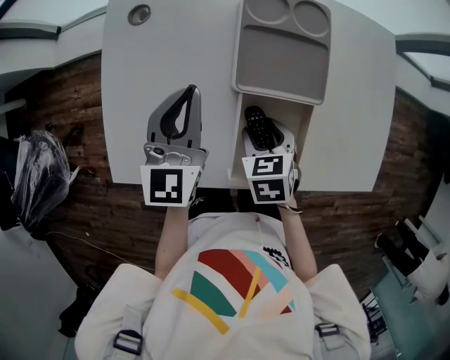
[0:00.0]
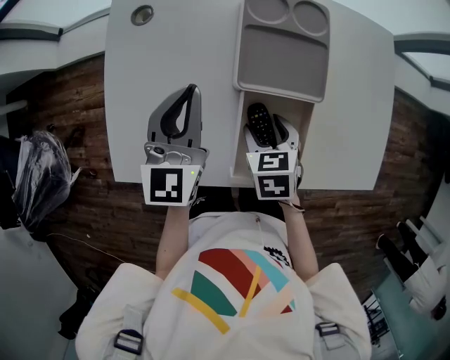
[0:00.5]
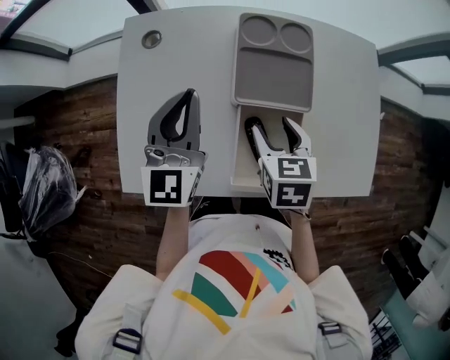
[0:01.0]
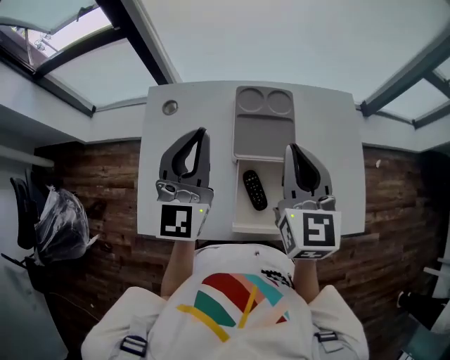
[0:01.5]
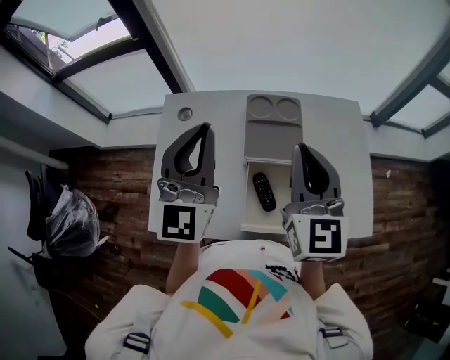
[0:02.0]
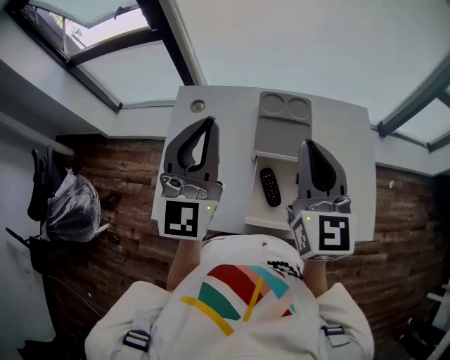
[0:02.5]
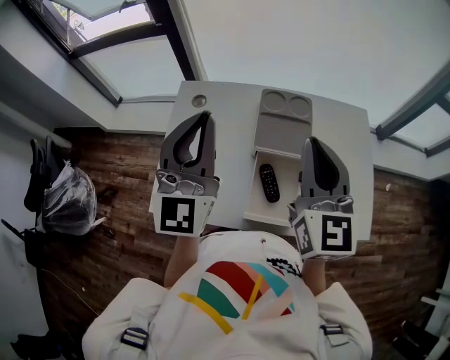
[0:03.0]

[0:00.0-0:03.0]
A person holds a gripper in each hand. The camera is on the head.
0:00.0 to 0:01.5: The right gripper is displaced upward by approximately 30 cm, points its fingers about 50 degrees further upward, and closes up. Meanwhile the left gripper travels upward by some 20 cm, and turns by some 20 degrees.
0:01.5 to 0:03.0: The left gripper goes roughly 10 cm upward and backward. Meanwhile the right gripper shifts approximately 5 cm upward.

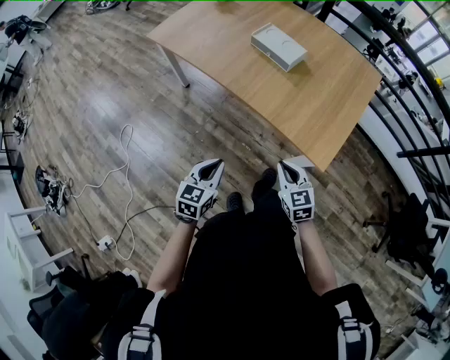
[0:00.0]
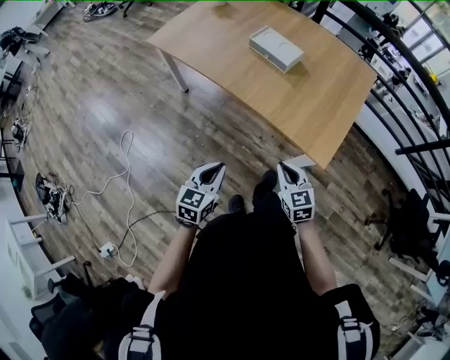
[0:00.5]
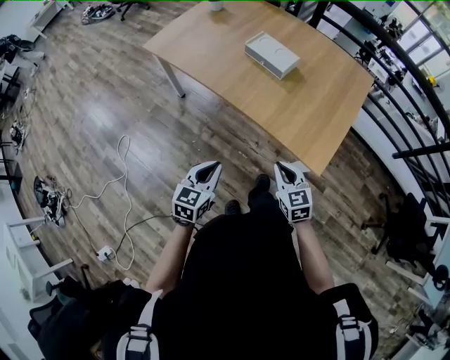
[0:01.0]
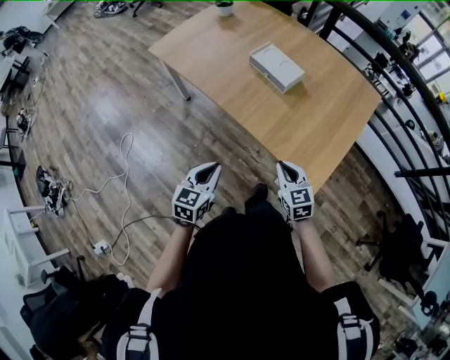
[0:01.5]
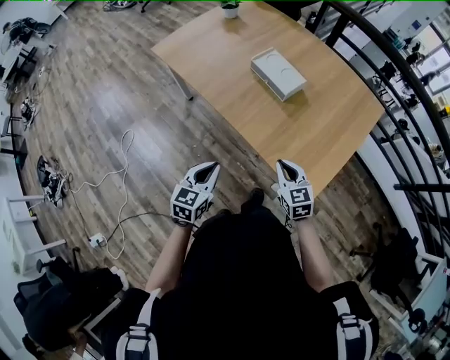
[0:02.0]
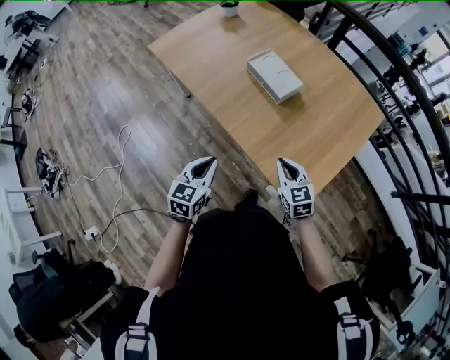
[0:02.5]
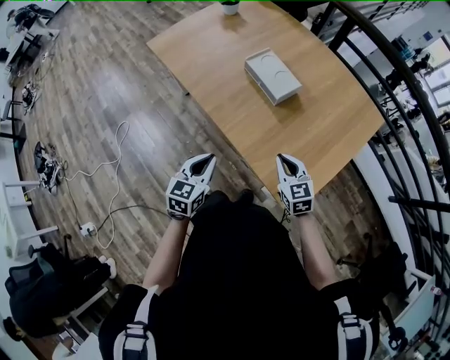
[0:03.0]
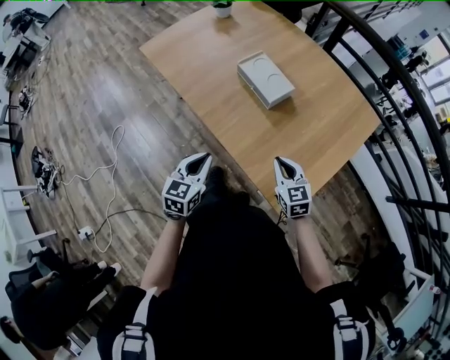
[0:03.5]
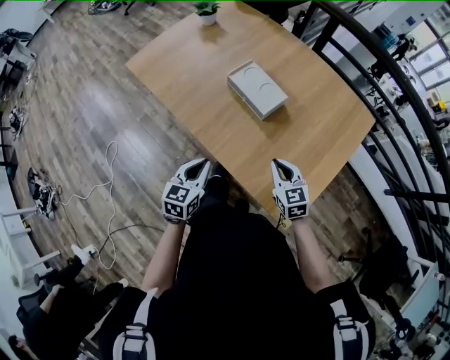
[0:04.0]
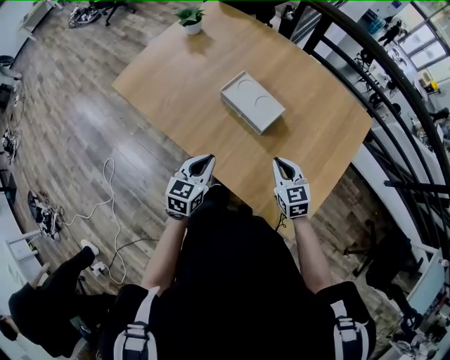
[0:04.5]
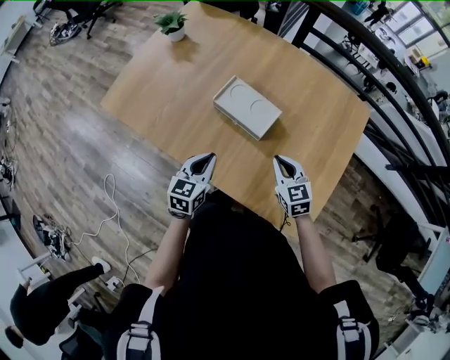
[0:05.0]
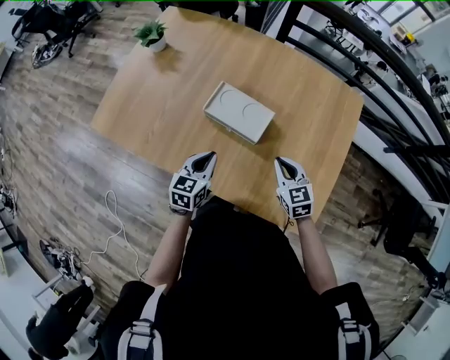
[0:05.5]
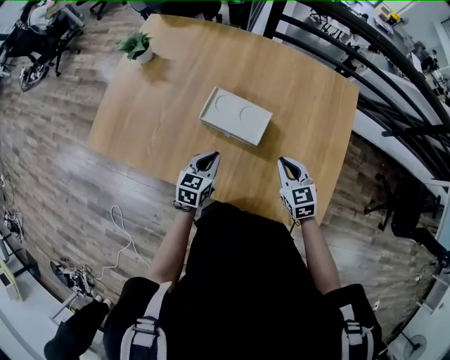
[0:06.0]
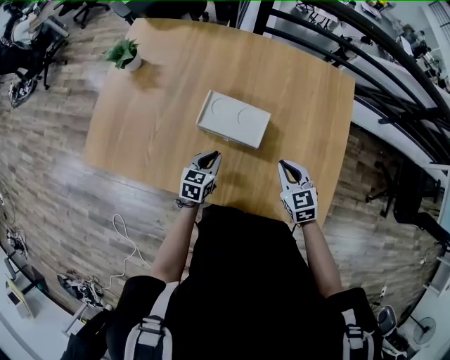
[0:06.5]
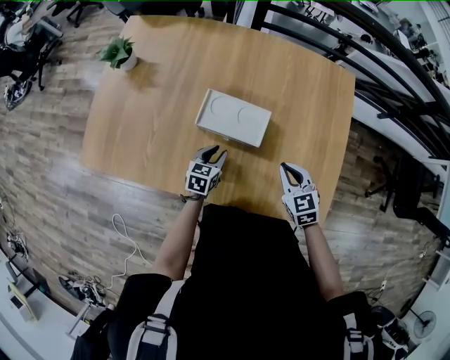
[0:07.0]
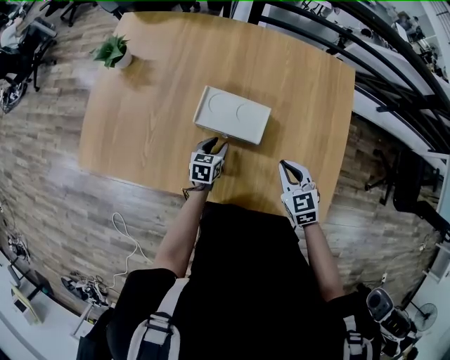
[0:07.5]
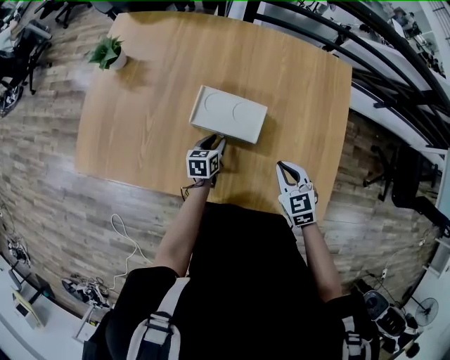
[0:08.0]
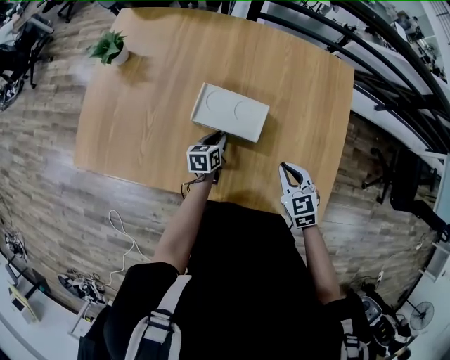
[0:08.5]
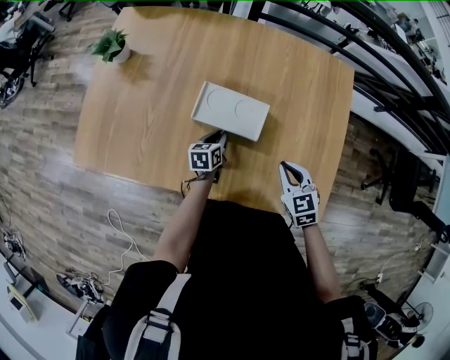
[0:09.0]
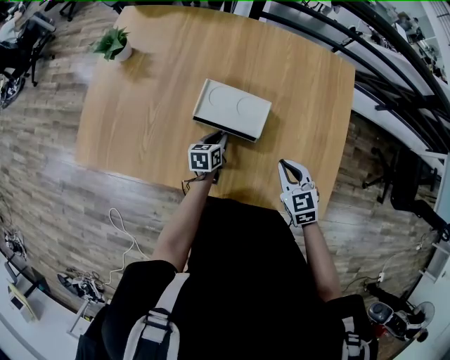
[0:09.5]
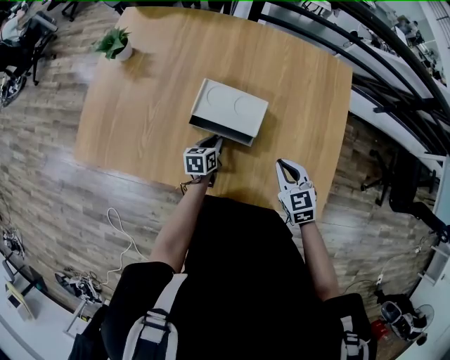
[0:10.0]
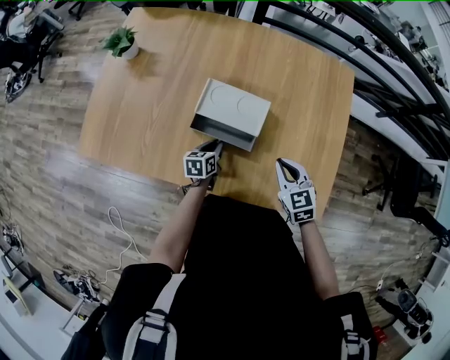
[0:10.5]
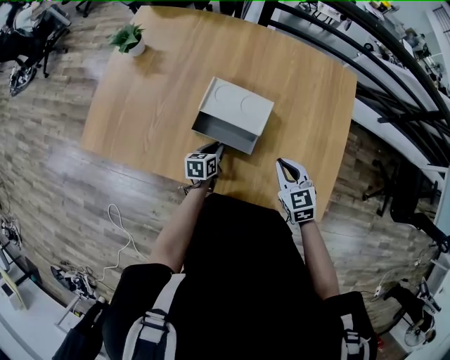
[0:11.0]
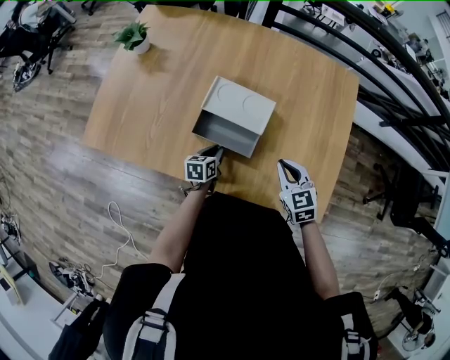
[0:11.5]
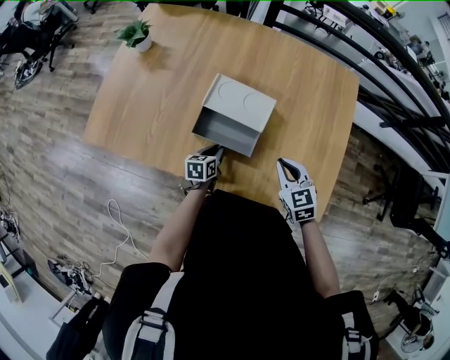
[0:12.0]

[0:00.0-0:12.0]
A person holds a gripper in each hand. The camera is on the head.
0:00.0 to 0:02.0: Both grippers move forward, approximately 10 cm.
0:02.0 to 0:04.0: The left gripper is displaced forward by some 15 cm; the right gripper moves forward and to the right, approximately 15 cm.
0:04.0 to 0:06.0: The left gripper shifts by about 25 cm, and changes its angle by about 30 degrees. Meanwhile the right gripper shifts by roughly 15 cm, and turns by some 20 degrees.
0:06.0 to 0:08.0: The left gripper shifts approximately 15 cm downward and forward, and opens.
0:08.0 to 0:10.0: The grippers make only small movements.
0:10.0 to 0:12.0: The left gripper travels backward by some 5 cm.

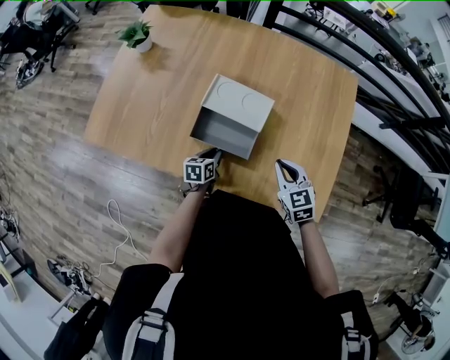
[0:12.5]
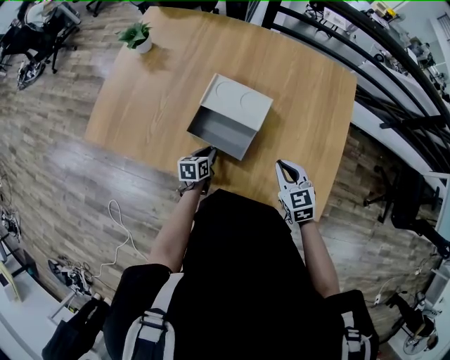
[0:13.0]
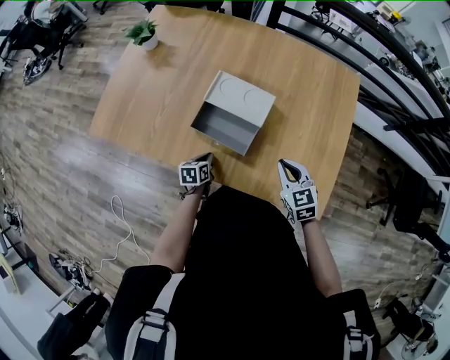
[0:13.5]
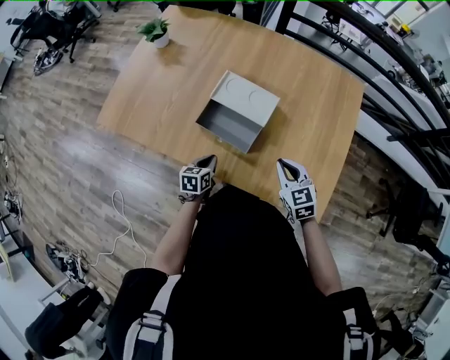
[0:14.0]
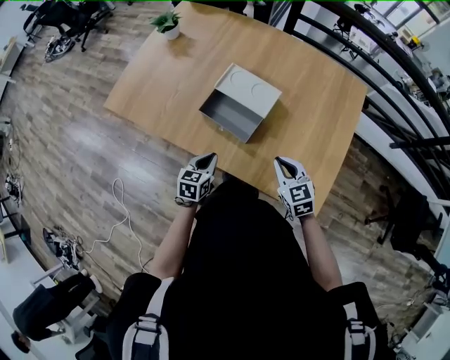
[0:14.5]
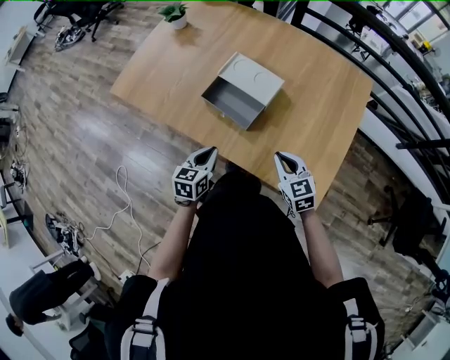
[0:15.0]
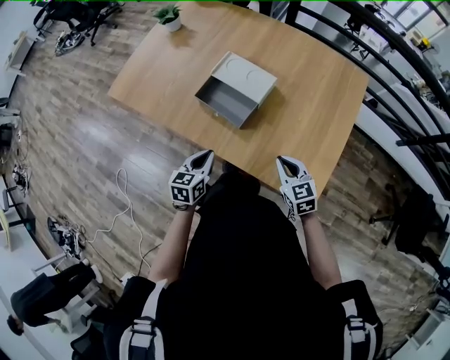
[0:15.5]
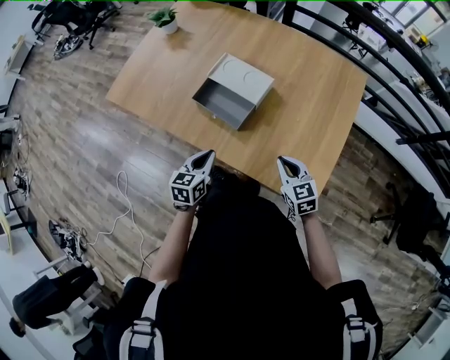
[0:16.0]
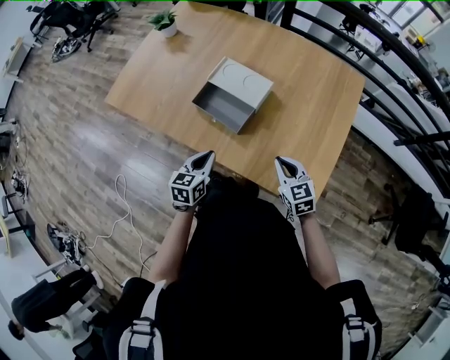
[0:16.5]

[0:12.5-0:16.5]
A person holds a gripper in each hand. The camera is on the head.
0:12.5 to 0:14.5: The right gripper goes about 5 cm backward, while the left gripper goes roughly 15 cm upward and backward.
0:14.5 to 0:16.5: The right gripper moves some 5 cm, while the left gripper shifts by approximately 5 cm.

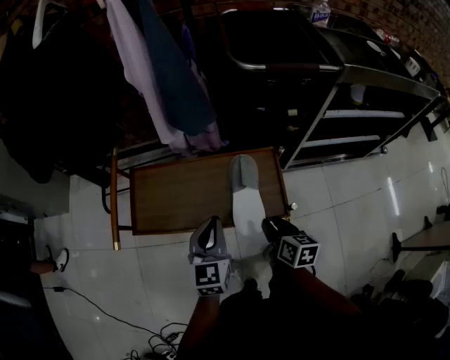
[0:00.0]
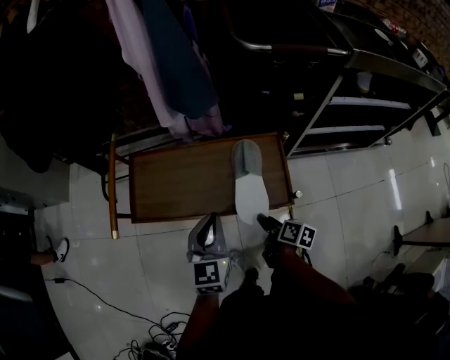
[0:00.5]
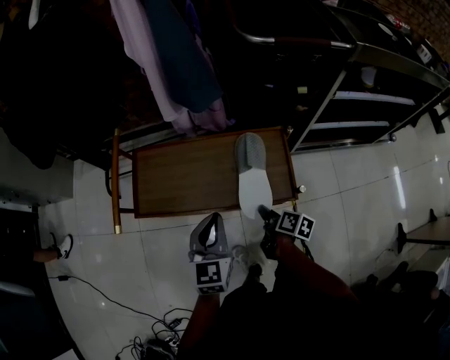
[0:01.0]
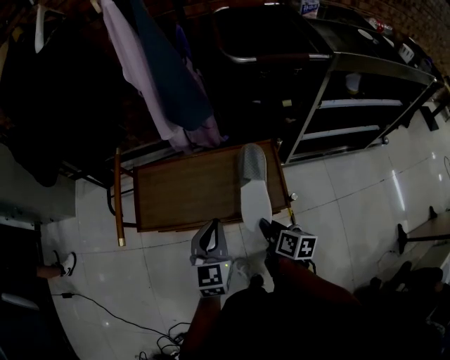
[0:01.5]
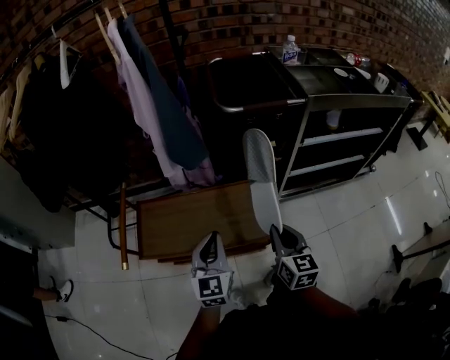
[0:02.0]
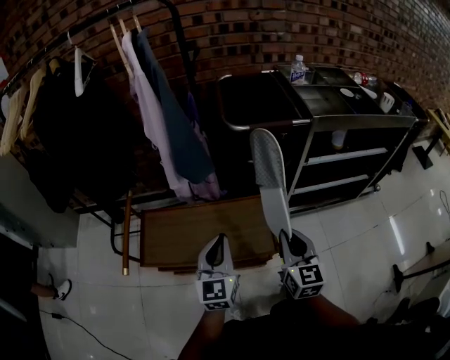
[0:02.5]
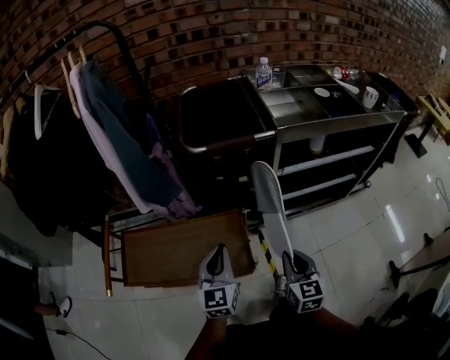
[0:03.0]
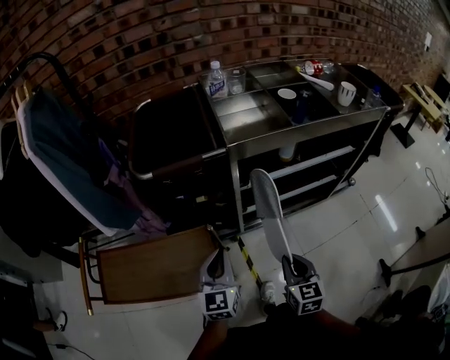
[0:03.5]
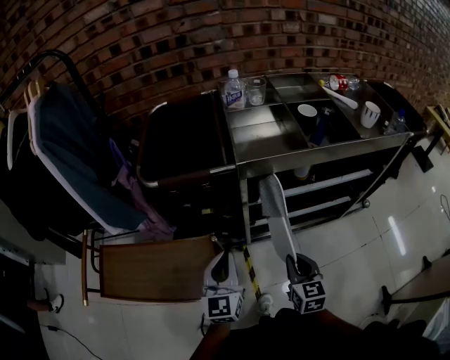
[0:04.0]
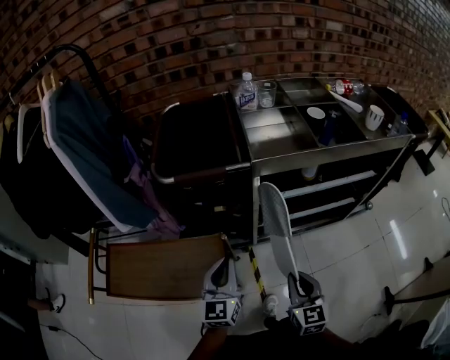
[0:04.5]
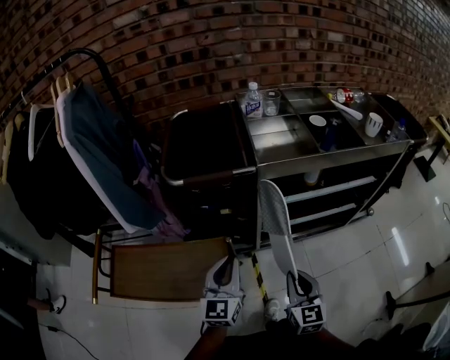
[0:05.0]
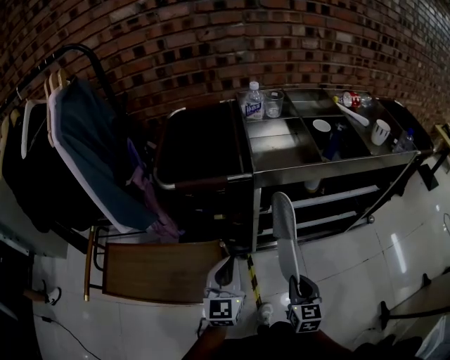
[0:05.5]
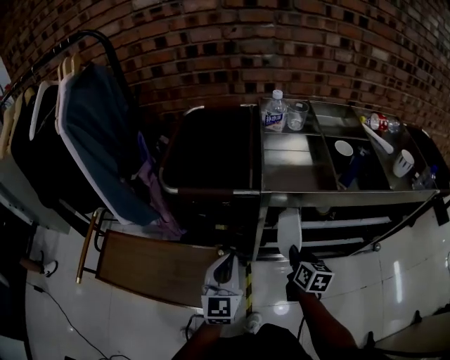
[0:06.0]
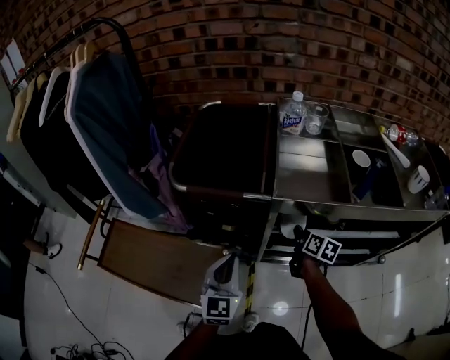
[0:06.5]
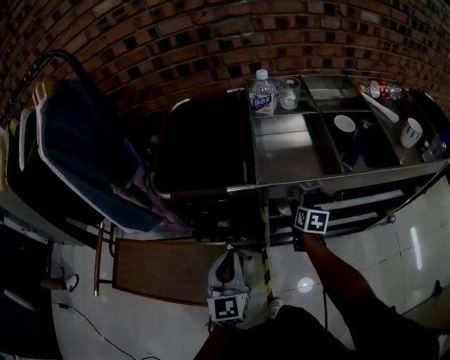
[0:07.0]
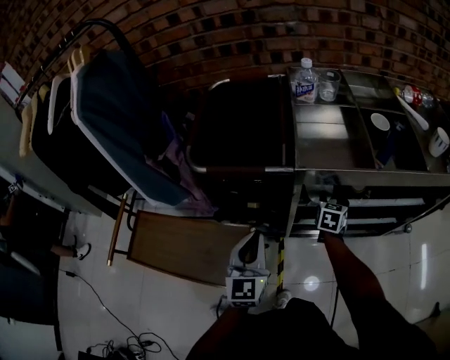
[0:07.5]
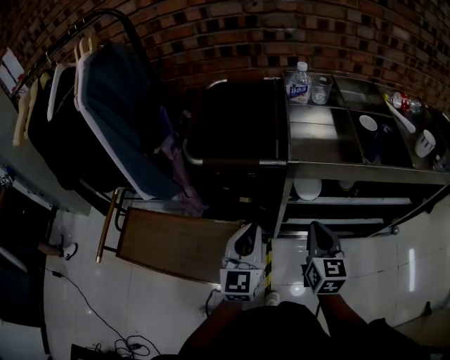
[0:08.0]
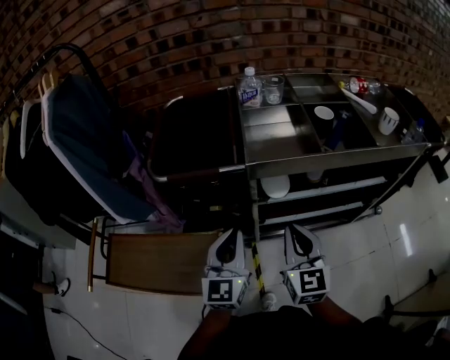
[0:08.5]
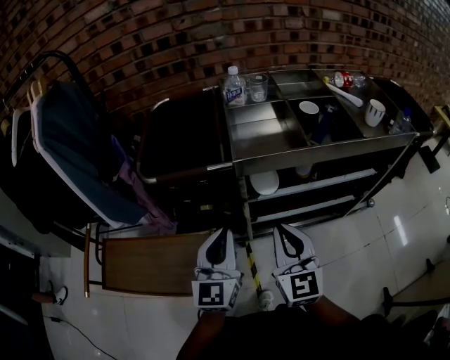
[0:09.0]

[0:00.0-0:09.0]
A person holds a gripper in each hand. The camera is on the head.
0:00.0 to 0:02.0: The left gripper travels upward by some 5 cm. Meanwhile the right gripper heads upward, covering some 15 cm, turns by about 30 degrees, and closes up.
0:02.0 to 0:04.5: The right gripper heads to the right, covering approximately 25 cm. The left gripper shifts about 30 cm to the right and forward.
0:04.5 to 0:07.0: The right gripper is displaced forward by approximately 35 cm, and swivels approximately 30 degrees. The left gripper travels forward by some 10 cm.
0:07.0 to 0:09.0: The left gripper travels upward by about 10 cm. The right gripper heads upward and backward, covering some 35 cm, angles its fingers upward, by some 40 degrees, and closes its fingers.
